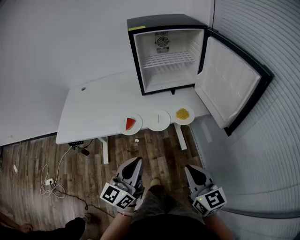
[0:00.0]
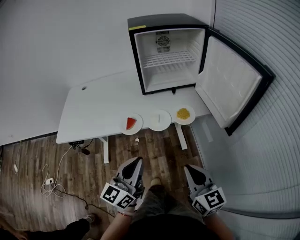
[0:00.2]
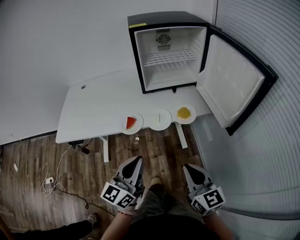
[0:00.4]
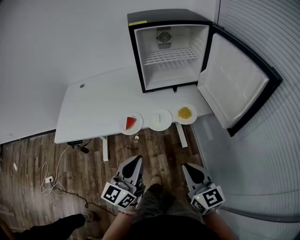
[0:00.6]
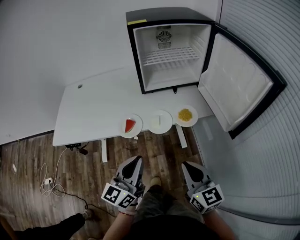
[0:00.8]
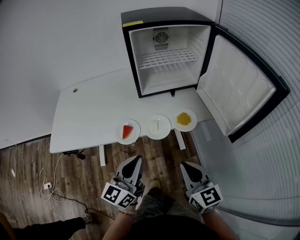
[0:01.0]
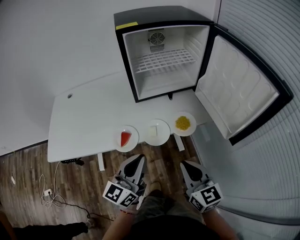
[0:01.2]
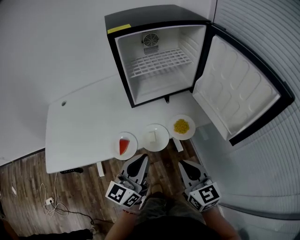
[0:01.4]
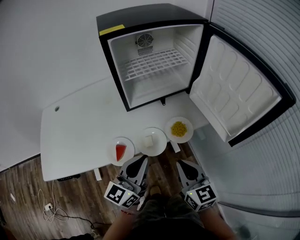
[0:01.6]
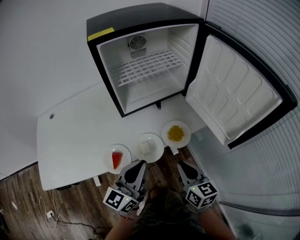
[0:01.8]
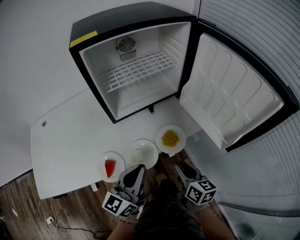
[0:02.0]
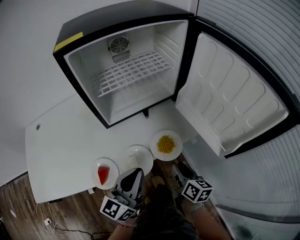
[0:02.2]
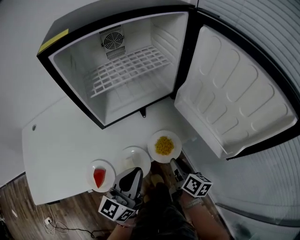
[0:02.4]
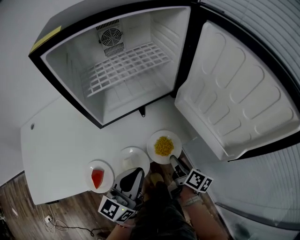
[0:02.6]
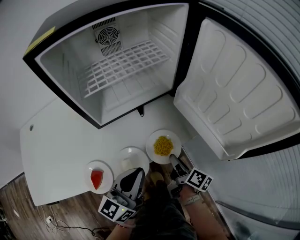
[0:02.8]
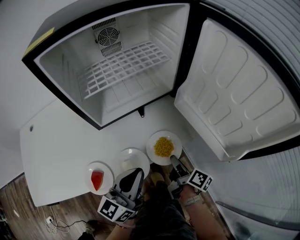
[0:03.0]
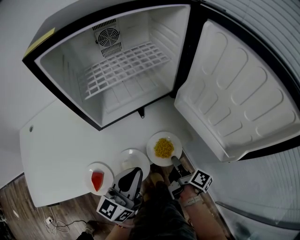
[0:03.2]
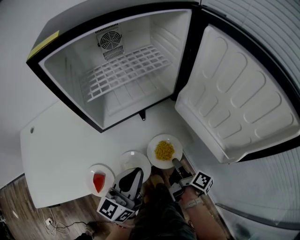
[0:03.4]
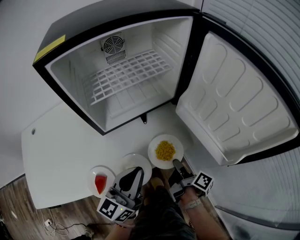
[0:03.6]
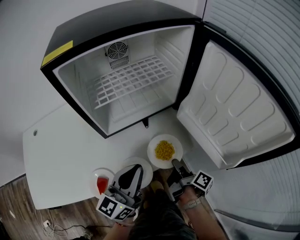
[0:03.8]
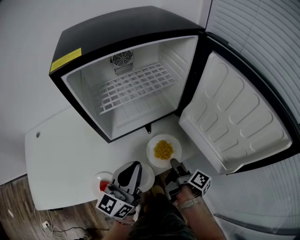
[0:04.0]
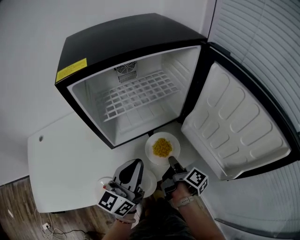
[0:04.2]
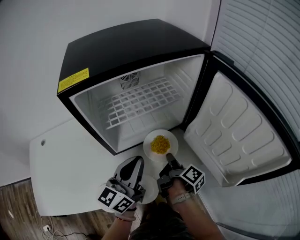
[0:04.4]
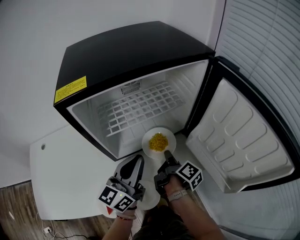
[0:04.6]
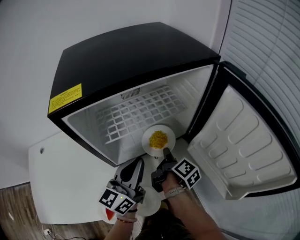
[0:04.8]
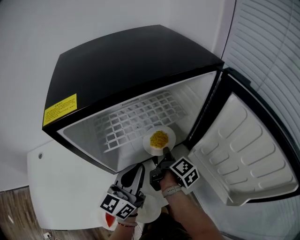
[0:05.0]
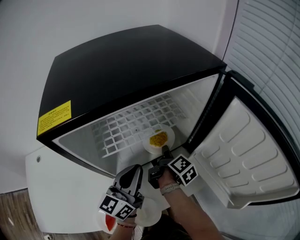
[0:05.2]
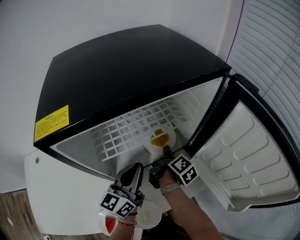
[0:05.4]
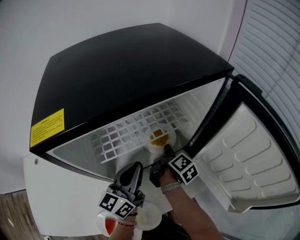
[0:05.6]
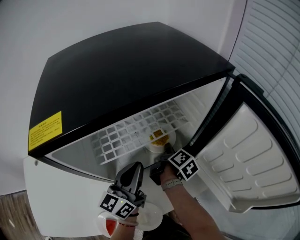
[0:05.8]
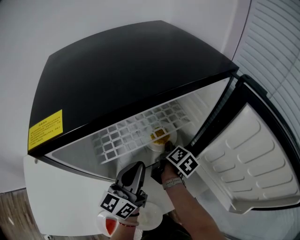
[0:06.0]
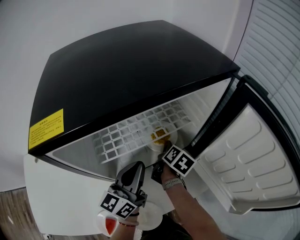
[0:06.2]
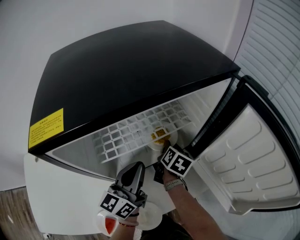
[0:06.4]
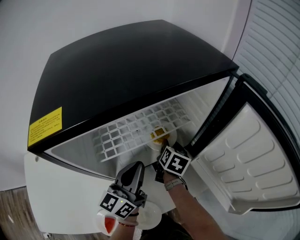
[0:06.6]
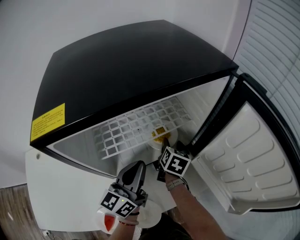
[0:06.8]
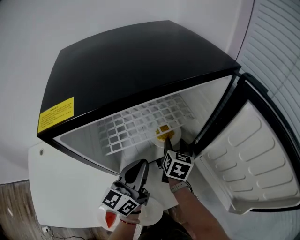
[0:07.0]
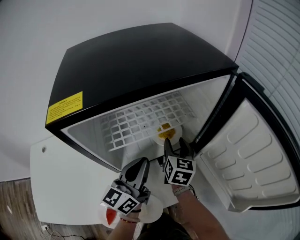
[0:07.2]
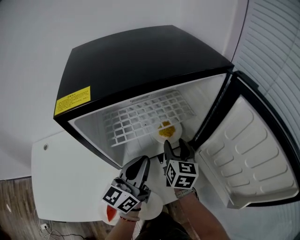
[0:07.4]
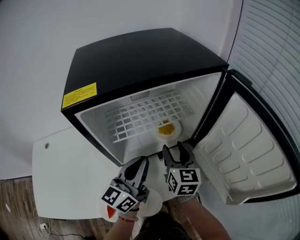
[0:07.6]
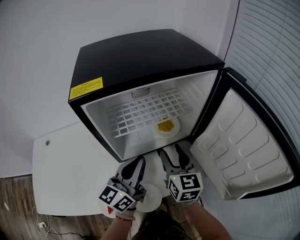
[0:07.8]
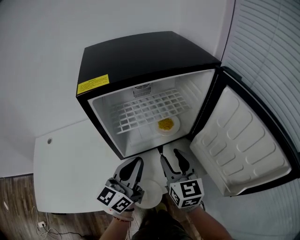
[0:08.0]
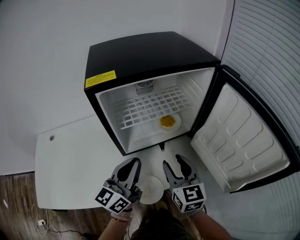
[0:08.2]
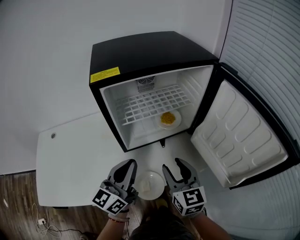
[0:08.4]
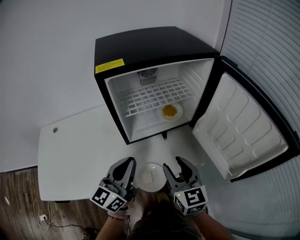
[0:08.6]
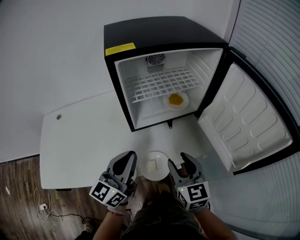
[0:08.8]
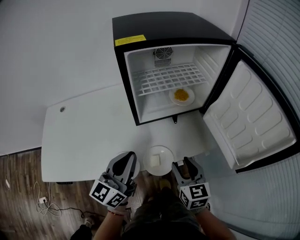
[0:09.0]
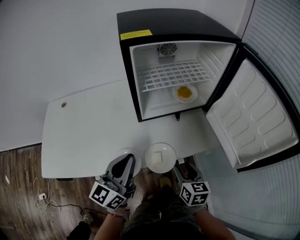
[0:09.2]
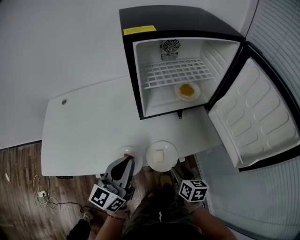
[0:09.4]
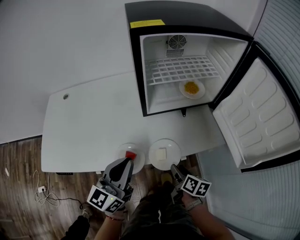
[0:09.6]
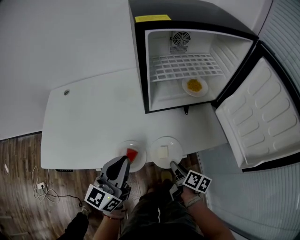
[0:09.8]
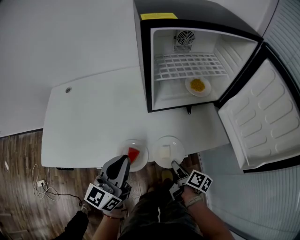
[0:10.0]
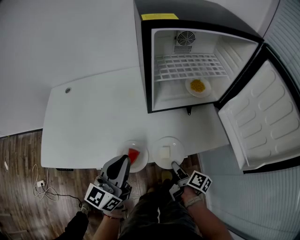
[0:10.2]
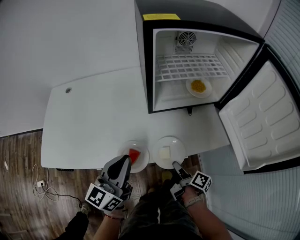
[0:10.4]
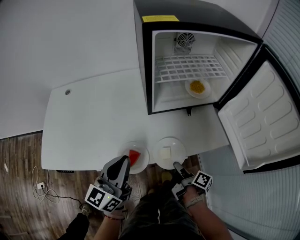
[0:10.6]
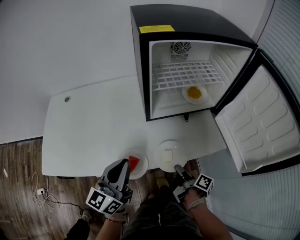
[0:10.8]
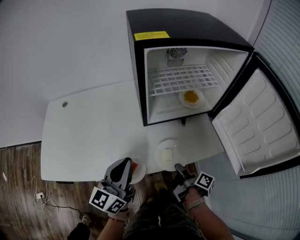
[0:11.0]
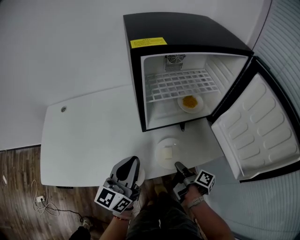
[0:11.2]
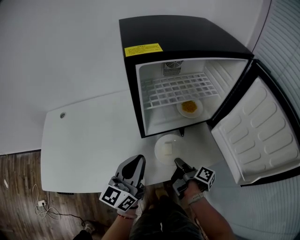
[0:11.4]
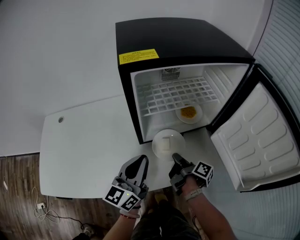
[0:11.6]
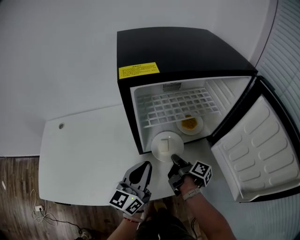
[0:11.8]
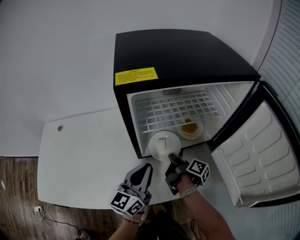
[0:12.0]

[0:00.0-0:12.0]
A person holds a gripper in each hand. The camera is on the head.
0:00.0 to 0:01.6: The two grippers go roughly 20 cm forward.
0:01.6 to 0:03.0: The left gripper heads forward, downward and to the right, covering about 15 cm. The right gripper travels downward, forward and to the right by approximately 25 cm, and rotates around the line of its fingers by some 70 degrees, clockwise from behind.
0:03.0 to 0:04.4: The right gripper moves forward, upward and to the left, approximately 15 cm; the left gripper travels forward and upward by approximately 15 cm.
0:04.4 to 0:06.0: The right gripper is displaced forward by some 20 cm, and changes its angle by some 30 degrees, while the left gripper heads forward, covering approximately 10 cm.
0:06.0 to 0:07.6: The right gripper goes approximately 15 cm upward and backward, twists approximately 50 degrees counterclockwise, seen from behind, and opens its fingers; the left gripper moves backward, approximately 5 cm.
0:07.6 to 0:09.0: The right gripper is displaced backward by roughly 25 cm, while the left gripper travels backward and to the left by some 20 cm.
0:09.0 to 0:10.4: The left gripper travels to the left by approximately 5 cm. Meanwhile the right gripper goes roughly 15 cm downward, twists about 70 degrees clockwise, seen from behind, and closes its fingers.
0:10.4 to 0:12.0: The right gripper moves forward, approximately 25 cm. Meanwhile the left gripper heads forward and to the right, covering about 20 cm.

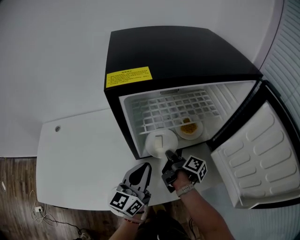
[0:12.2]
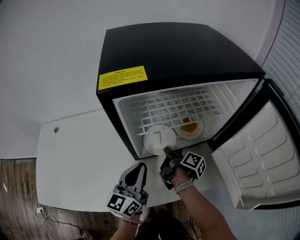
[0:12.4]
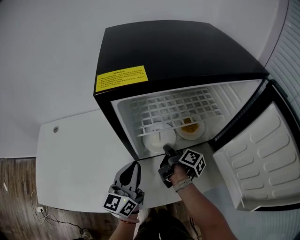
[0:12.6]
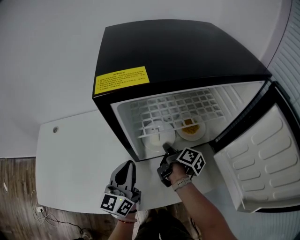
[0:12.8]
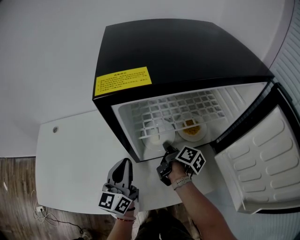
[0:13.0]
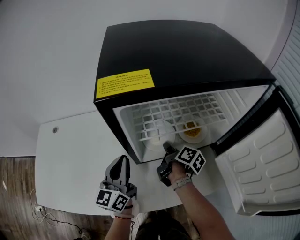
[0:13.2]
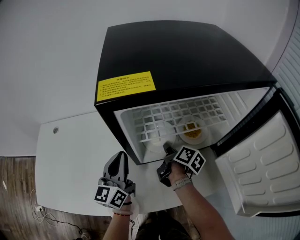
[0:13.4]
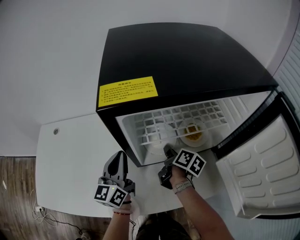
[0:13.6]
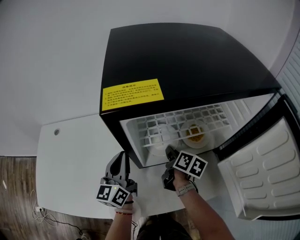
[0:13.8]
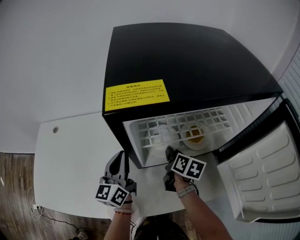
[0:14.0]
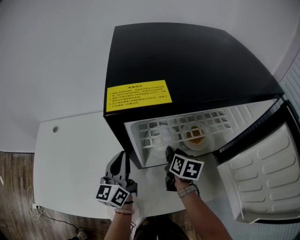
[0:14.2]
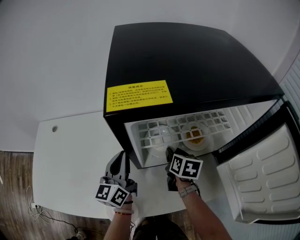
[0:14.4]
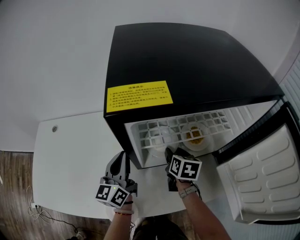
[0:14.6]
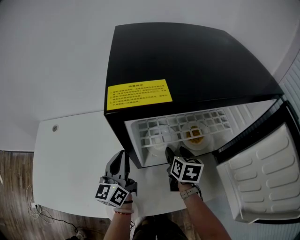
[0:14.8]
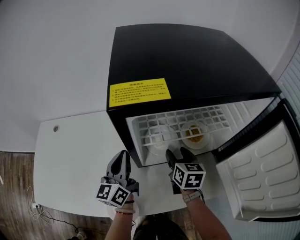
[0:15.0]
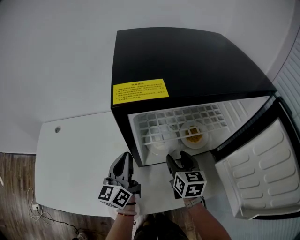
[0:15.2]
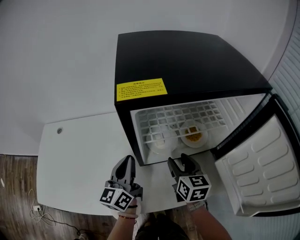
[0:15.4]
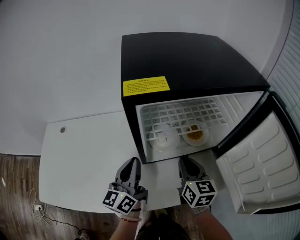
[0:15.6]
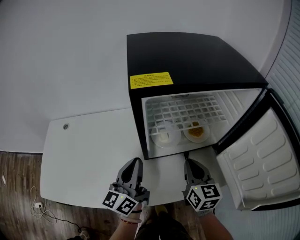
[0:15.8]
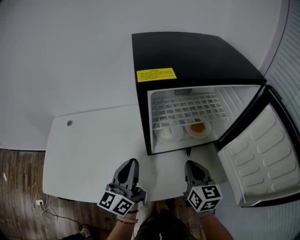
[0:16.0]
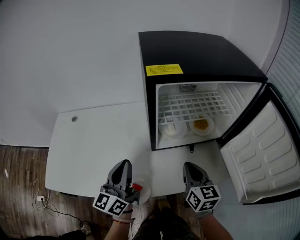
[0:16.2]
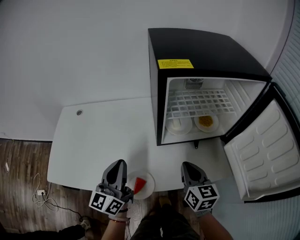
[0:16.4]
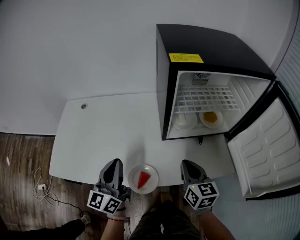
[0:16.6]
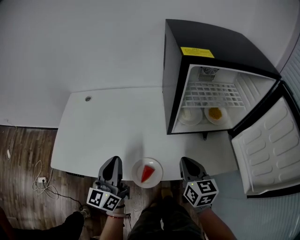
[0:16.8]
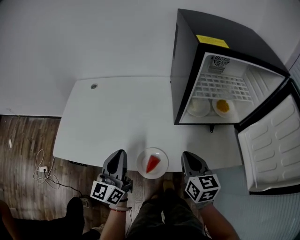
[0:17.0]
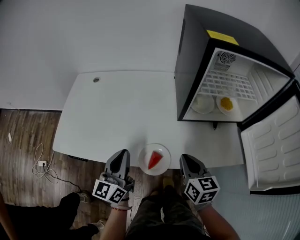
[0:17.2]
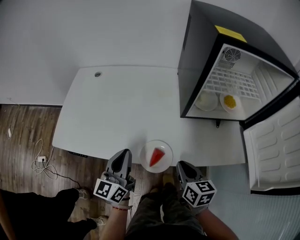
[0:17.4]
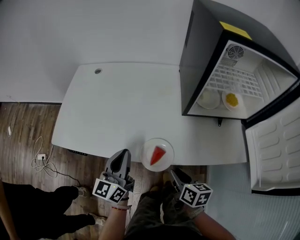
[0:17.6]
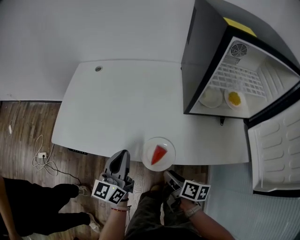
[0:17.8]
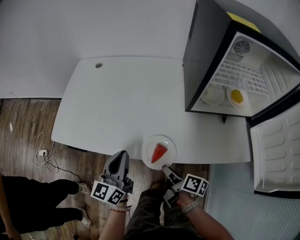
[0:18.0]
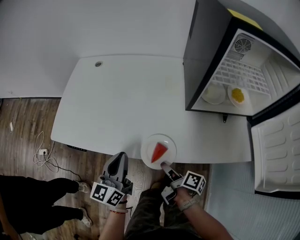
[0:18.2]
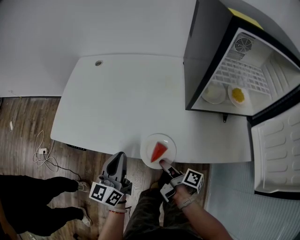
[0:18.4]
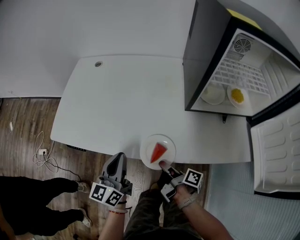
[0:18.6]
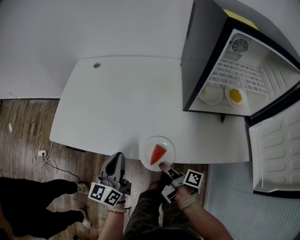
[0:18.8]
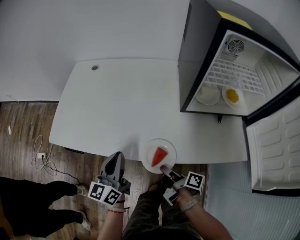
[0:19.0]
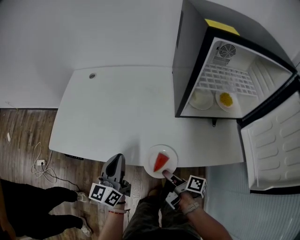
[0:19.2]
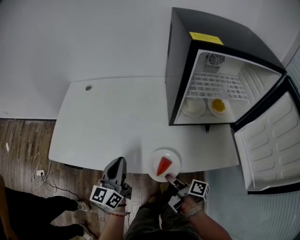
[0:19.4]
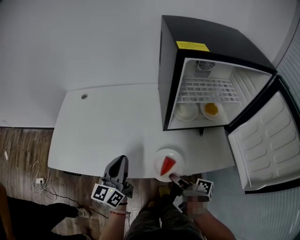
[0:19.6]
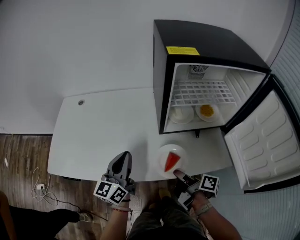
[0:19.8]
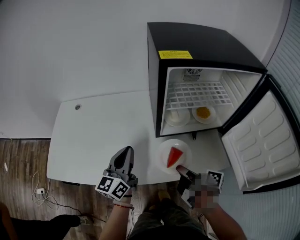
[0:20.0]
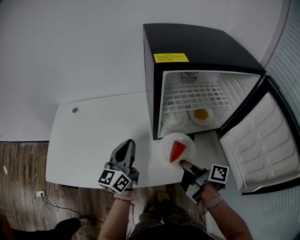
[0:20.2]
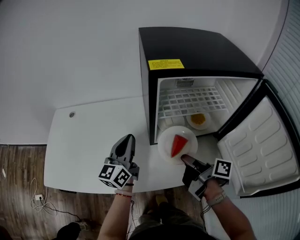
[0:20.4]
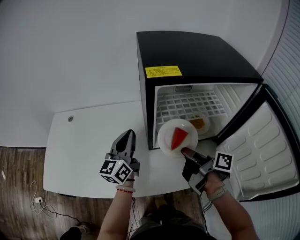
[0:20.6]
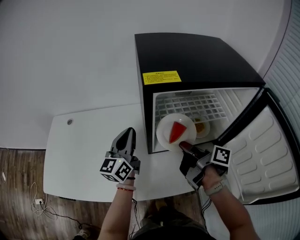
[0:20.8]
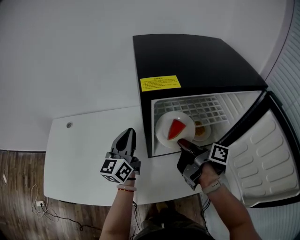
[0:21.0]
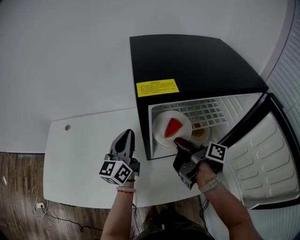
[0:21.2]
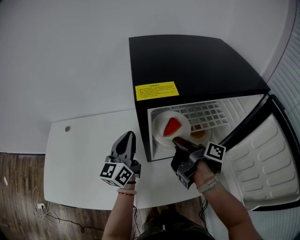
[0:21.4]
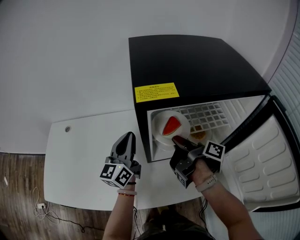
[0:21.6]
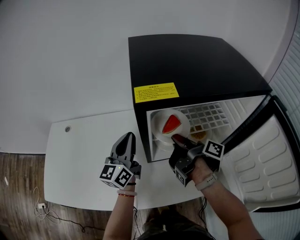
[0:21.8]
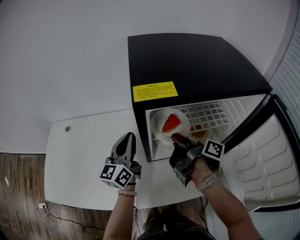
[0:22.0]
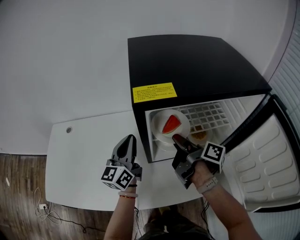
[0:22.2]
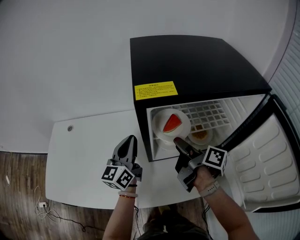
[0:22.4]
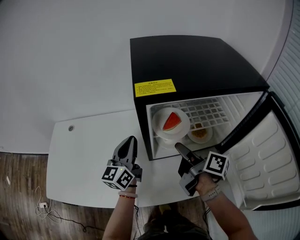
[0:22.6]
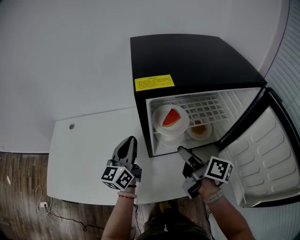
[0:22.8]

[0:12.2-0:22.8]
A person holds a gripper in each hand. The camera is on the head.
0:12.2 to 0:13.8: The right gripper goes about 5 cm forward, and swivels about 30 degrees. The left gripper shifts roughly 15 cm to the left and forward.
0:13.8 to 0:15.2: The right gripper goes some 5 cm upward, rotates around the line of its fingers by about 40 degrees, counterclockwise from behind, and opens its fingers.
0:15.2 to 0:16.8: The two grippers go about 25 cm backward and to the left. The right gripper closes its fingers.
0:16.8 to 0:18.2: The right gripper shifts some 20 cm downward and to the left, rolls clockwise, seen from behind, by approximately 70 degrees, and opens up. Meanwhile the left gripper travels downward and backward by roughly 10 cm.
0:18.2 to 0:19.8: The left gripper goes roughly 15 cm to the right, upward and forward. The right gripper goes roughly 15 cm to the right and upward, and closes up.
0:19.8 to 0:21.2: The left gripper goes some 20 cm forward and to the right. The right gripper travels forward and upward by some 25 cm.
0:21.2 to 0:22.8: The right gripper travels backward by some 5 cm, rotates some 30 degrees, and opens.

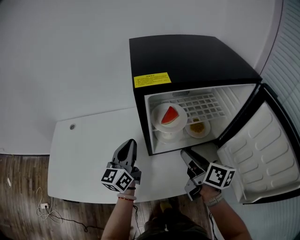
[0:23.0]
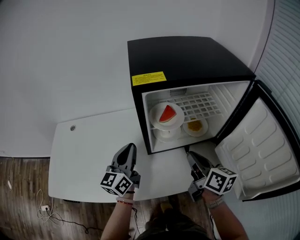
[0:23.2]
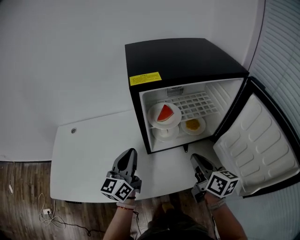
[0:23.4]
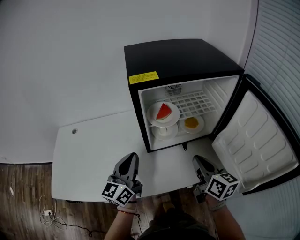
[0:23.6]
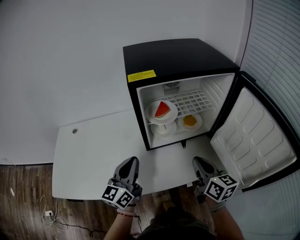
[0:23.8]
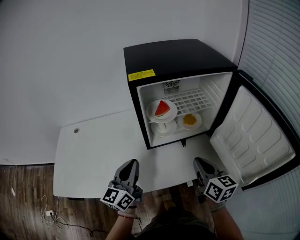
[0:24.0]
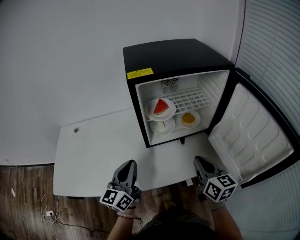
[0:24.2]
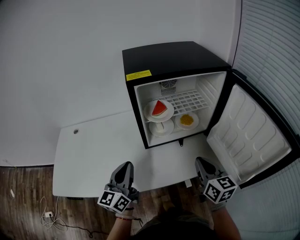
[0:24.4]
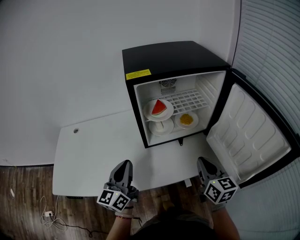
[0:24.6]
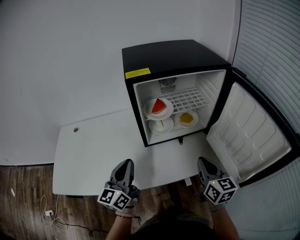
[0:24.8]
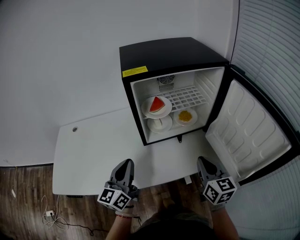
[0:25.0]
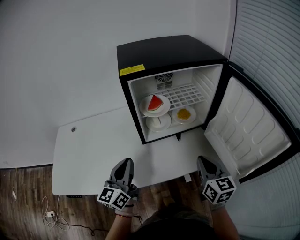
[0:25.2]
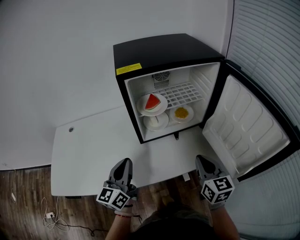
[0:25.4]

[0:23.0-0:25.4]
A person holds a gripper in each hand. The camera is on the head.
0:23.0 to 0:24.2: The left gripper travels backward by approximately 15 cm, while the right gripper moves backward and to the right, approximately 15 cm, turns by about 30 degrees, and closes.
0:24.2 to 0:25.4: The grippers stay close to where they were, moving slightly.
